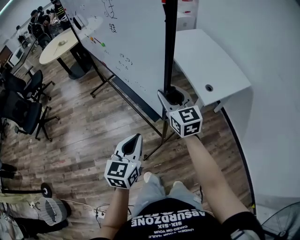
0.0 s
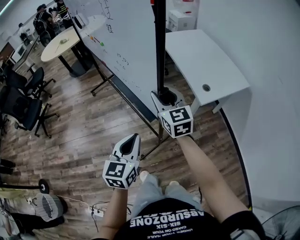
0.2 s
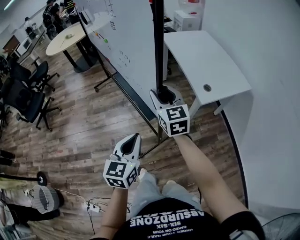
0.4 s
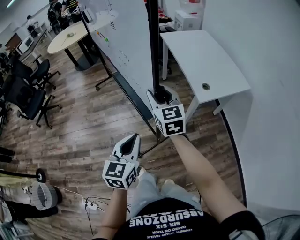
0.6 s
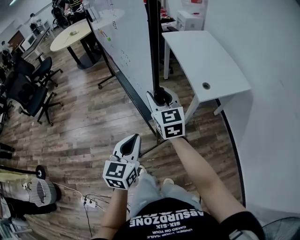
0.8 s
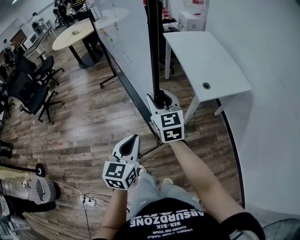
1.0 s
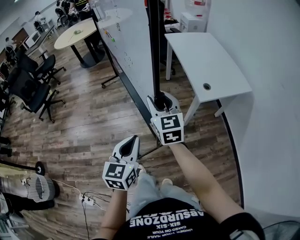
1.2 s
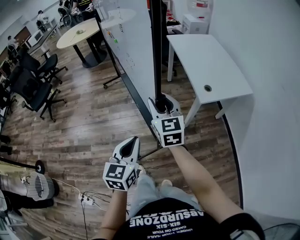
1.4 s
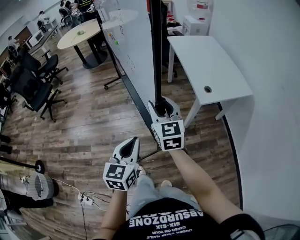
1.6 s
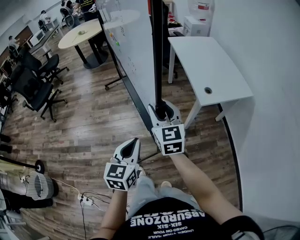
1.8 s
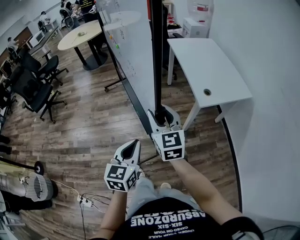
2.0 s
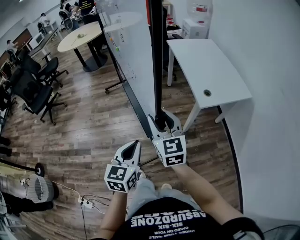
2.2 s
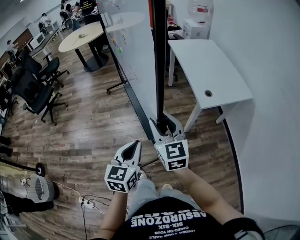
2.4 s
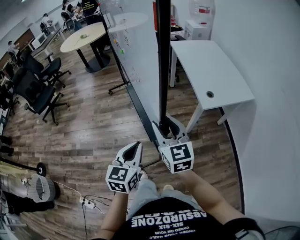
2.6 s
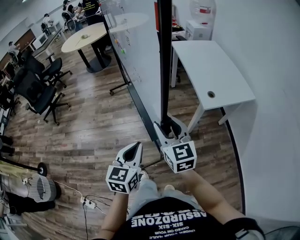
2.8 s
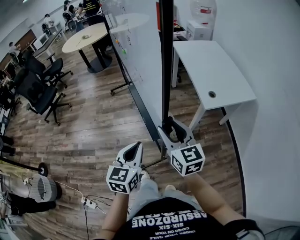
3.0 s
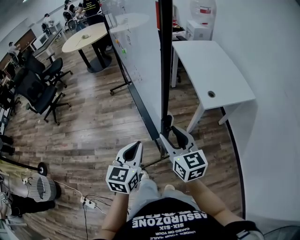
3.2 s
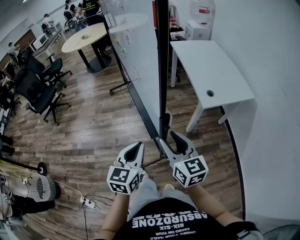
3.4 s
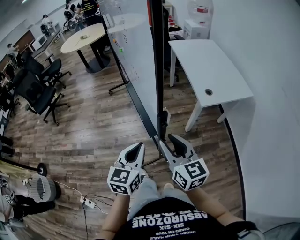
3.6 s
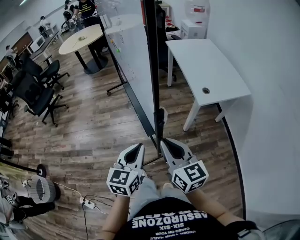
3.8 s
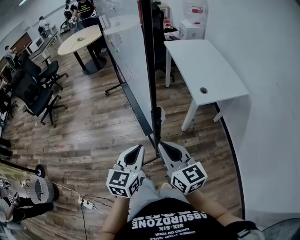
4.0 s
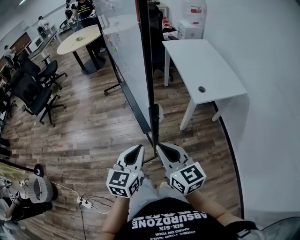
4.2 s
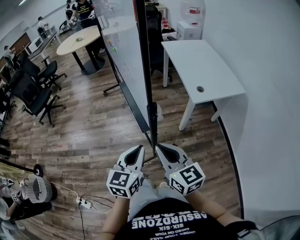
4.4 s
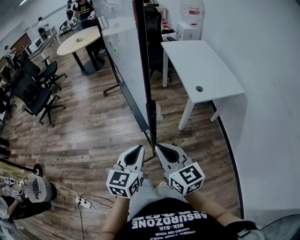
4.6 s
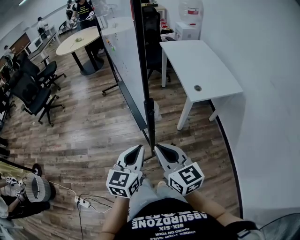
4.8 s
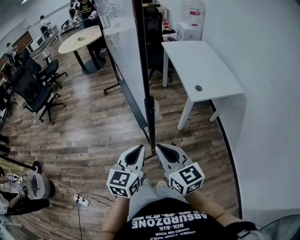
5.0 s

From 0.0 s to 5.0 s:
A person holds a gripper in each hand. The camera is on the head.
From 0.0 s to 1.6 s: The right gripper travels backward by some 15 cm. The left gripper goes roughly 15 cm backward and to the right.
From 1.6 s to 3.4 s: The right gripper is displaced backward by about 10 cm.
From 3.4 s to 5.0 s: The grippers both shift backward by some 10 cm. The right gripper closes its fingers.

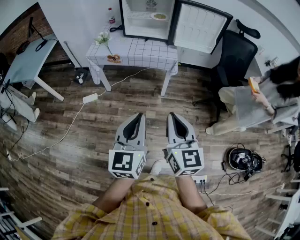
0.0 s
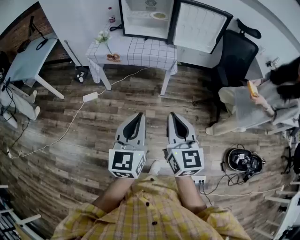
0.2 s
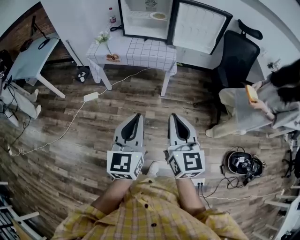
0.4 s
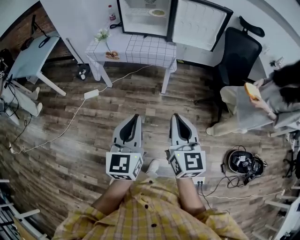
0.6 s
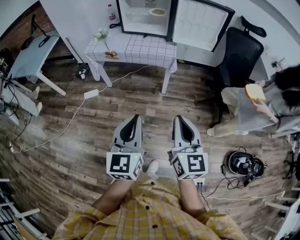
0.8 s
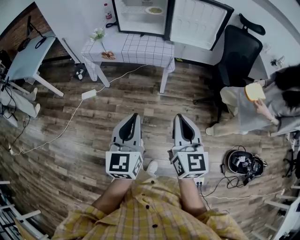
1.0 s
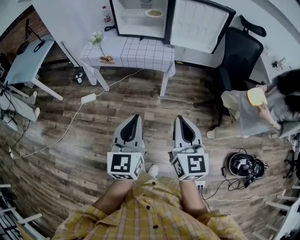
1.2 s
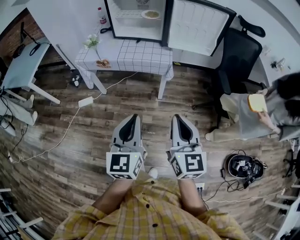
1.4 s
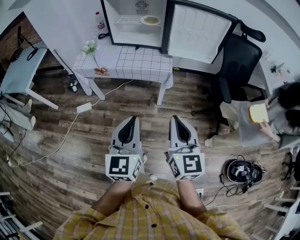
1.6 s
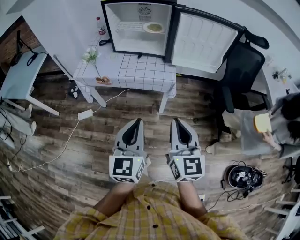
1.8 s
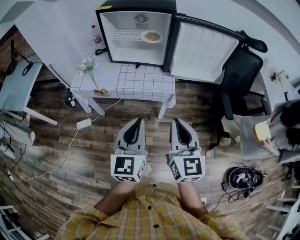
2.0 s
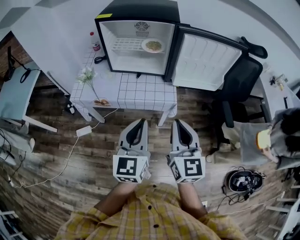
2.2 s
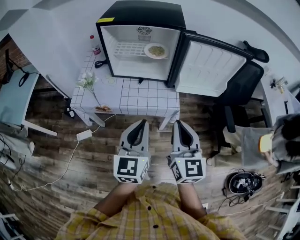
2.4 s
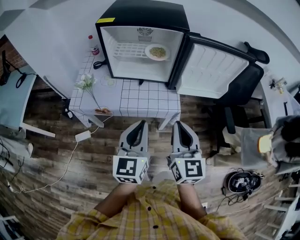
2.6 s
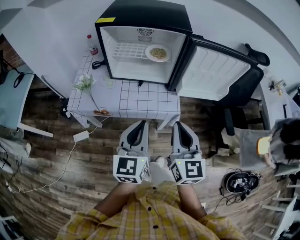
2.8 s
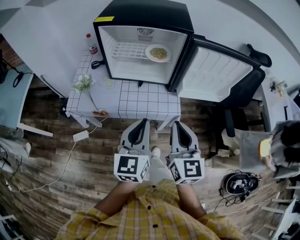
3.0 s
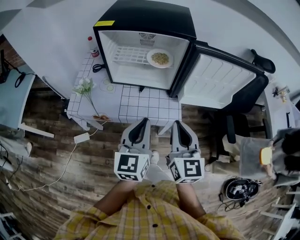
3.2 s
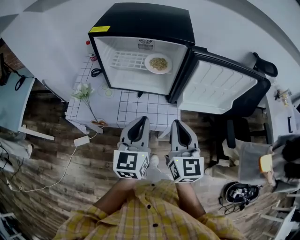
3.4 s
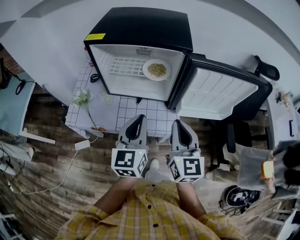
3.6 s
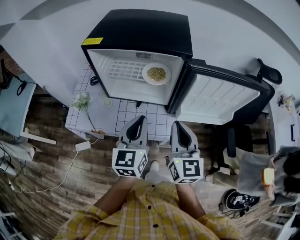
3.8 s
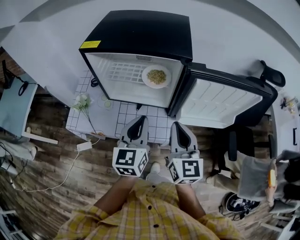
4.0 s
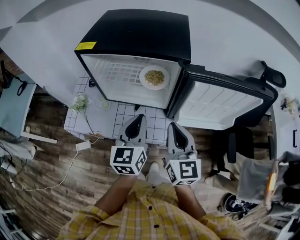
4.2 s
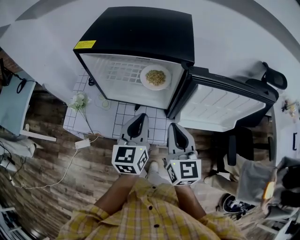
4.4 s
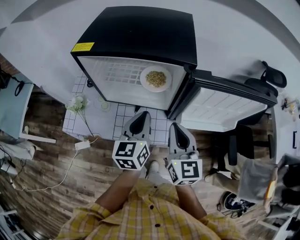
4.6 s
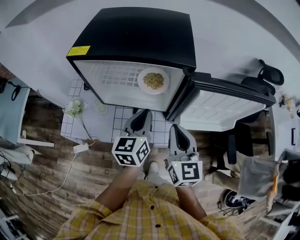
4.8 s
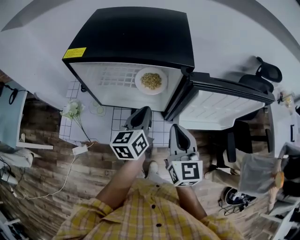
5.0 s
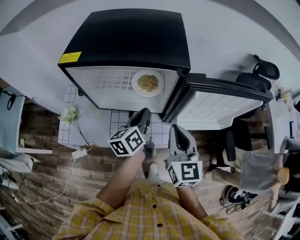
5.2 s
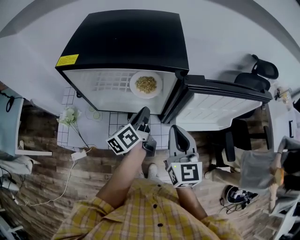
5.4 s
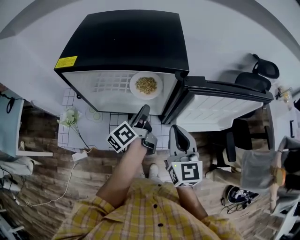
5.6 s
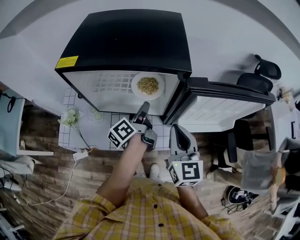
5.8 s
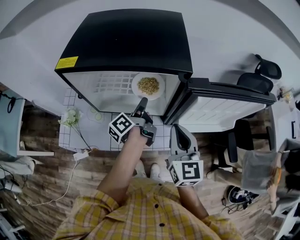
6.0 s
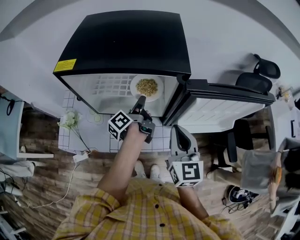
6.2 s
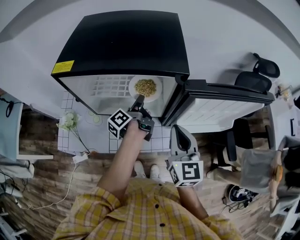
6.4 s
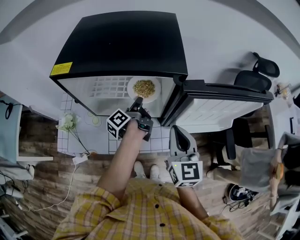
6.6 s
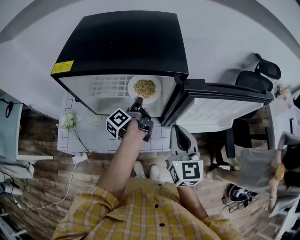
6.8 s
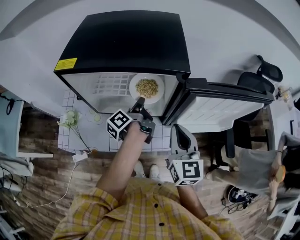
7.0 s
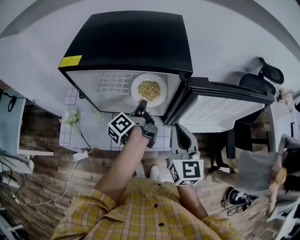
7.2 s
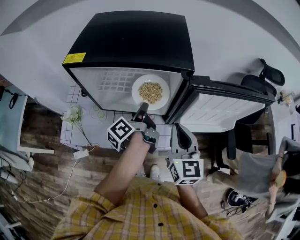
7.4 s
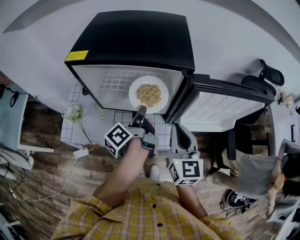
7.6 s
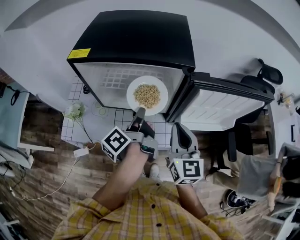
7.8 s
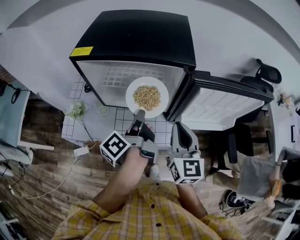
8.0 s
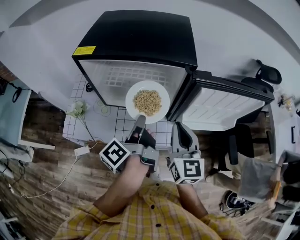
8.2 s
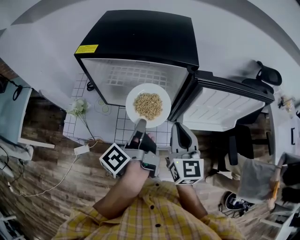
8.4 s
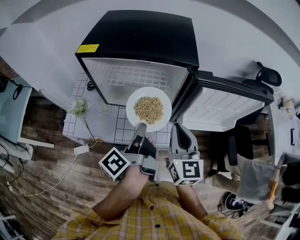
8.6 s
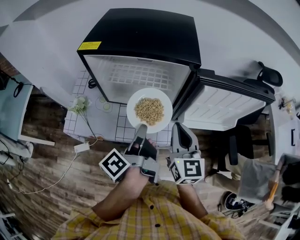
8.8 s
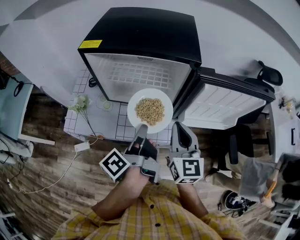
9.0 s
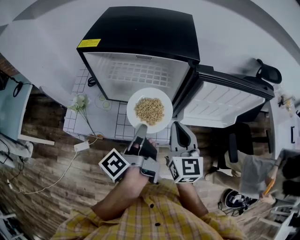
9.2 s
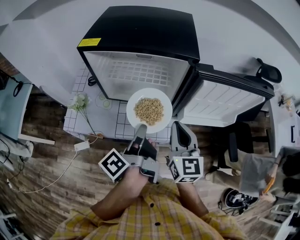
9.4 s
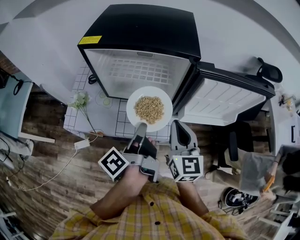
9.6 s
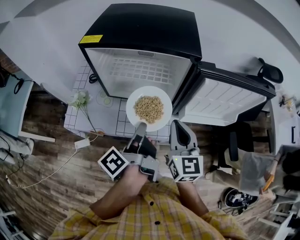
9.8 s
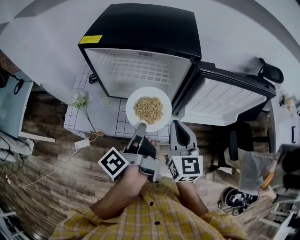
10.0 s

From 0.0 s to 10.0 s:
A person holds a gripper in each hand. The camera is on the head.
From 0.0 s to 1.4 s: The two grippers go about 15 cm forward and to the right.
From 1.4 s to 2.8 s: Both grippers travel together forward, some 30 cm.
From 2.8 s to 4.2 s: Both grippers travel together forward, roughly 20 cm.
From 4.2 s to 5.8 s: The right gripper shifts roughly 5 cm forward. The left gripper travels forward and downward by roughly 15 cm, twists about 60 degrees counterclockwise, seen from behind, and opens its fingers.
From 5.8 s to 7.2 s: The left gripper closes.
From 7.2 s to 8.6 s: The left gripper is displaced backward and upward by about 20 cm.
From 8.6 s to 10.0 s: There are only small adjustments of the grippers.

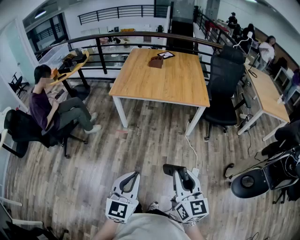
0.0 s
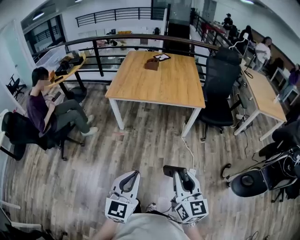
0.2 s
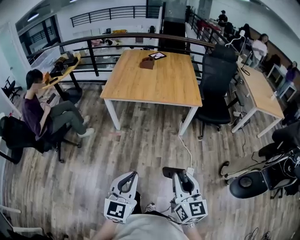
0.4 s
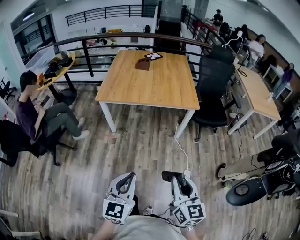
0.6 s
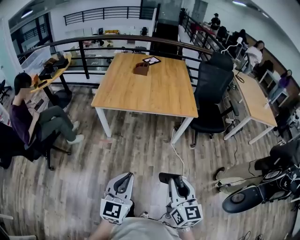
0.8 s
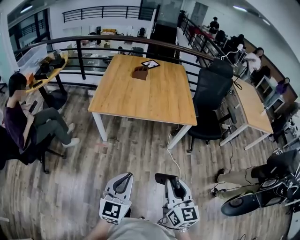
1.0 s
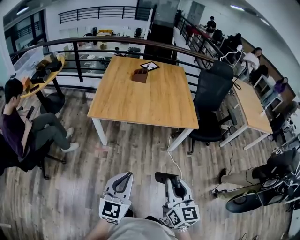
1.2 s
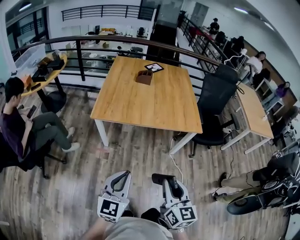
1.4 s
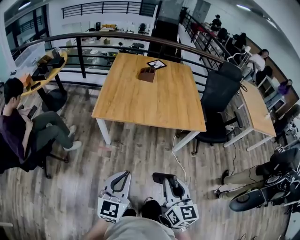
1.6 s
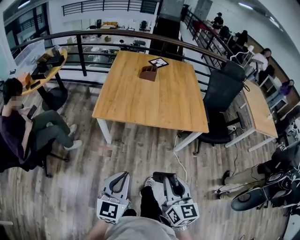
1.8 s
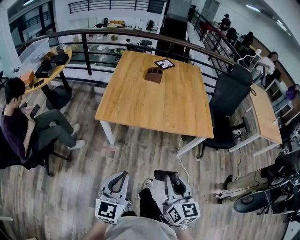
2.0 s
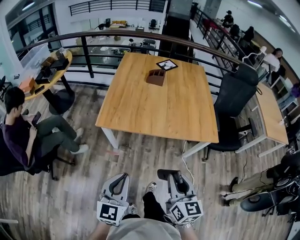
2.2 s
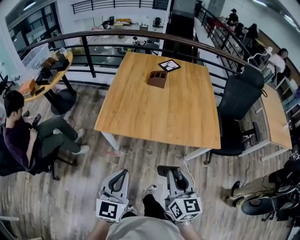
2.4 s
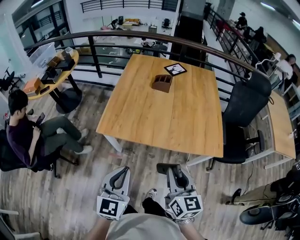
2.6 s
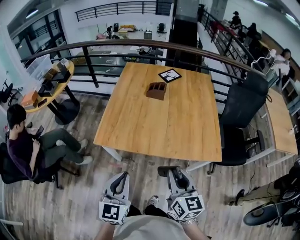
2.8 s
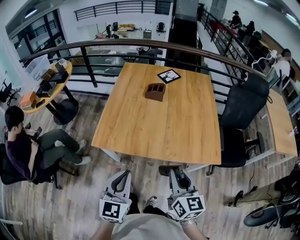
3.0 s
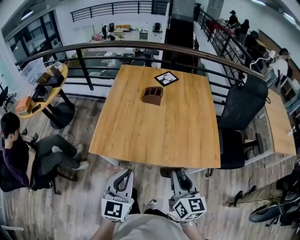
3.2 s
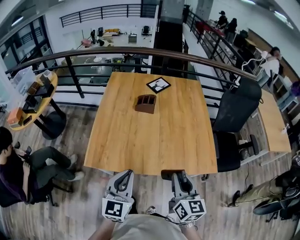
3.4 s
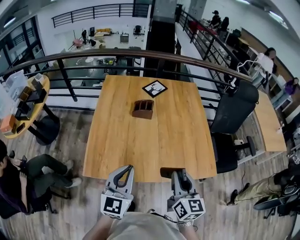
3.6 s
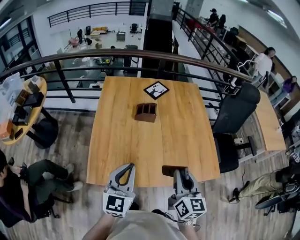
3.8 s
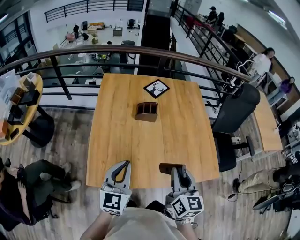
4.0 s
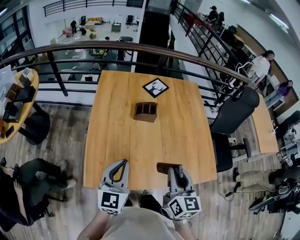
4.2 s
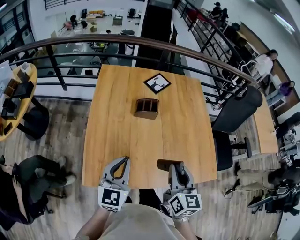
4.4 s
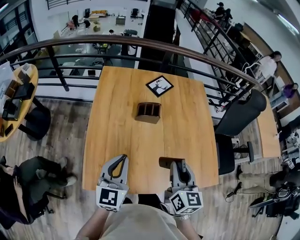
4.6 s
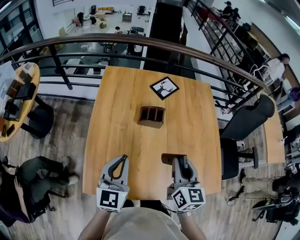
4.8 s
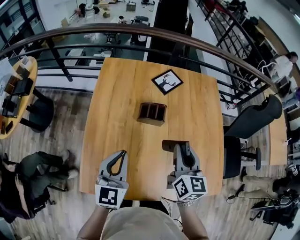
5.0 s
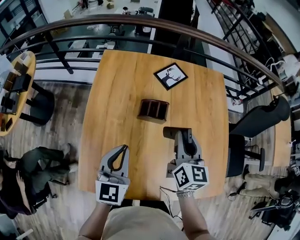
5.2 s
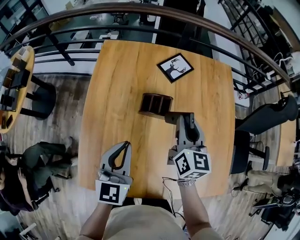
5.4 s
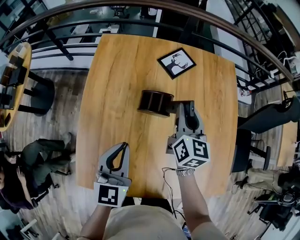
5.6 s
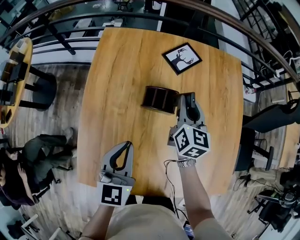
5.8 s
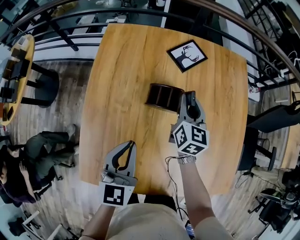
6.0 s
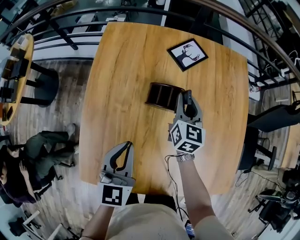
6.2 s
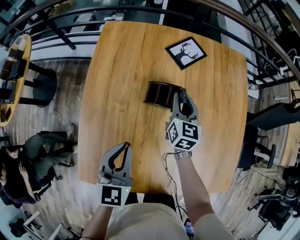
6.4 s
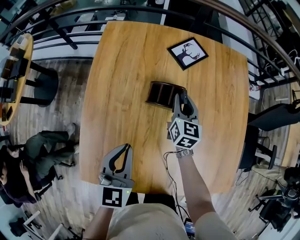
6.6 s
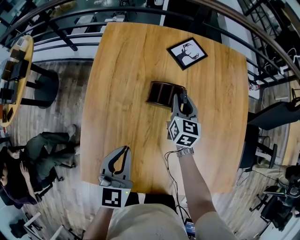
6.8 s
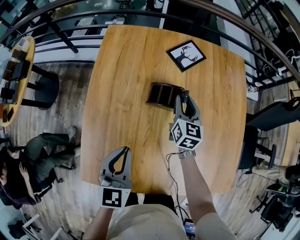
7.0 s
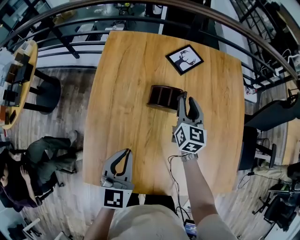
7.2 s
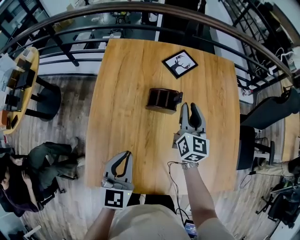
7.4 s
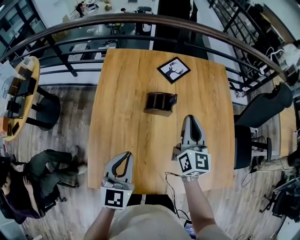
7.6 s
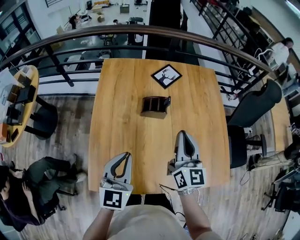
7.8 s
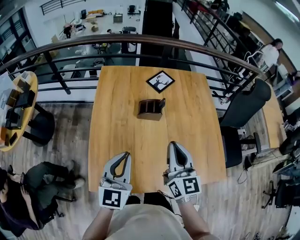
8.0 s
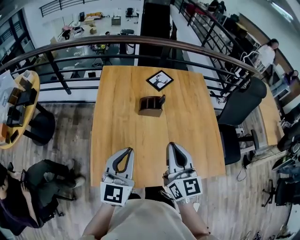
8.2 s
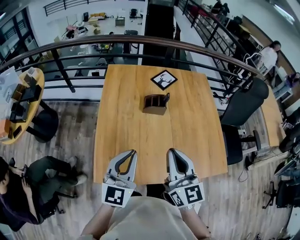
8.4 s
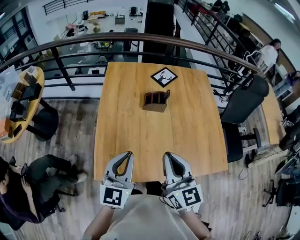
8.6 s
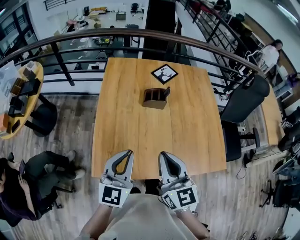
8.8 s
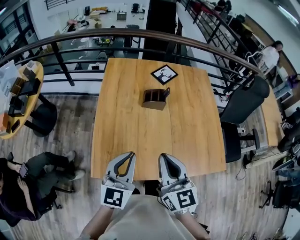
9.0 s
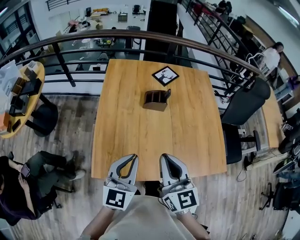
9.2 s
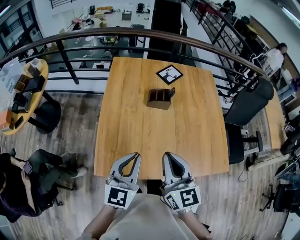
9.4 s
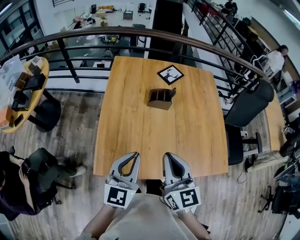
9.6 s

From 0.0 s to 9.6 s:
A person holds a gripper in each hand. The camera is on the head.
From 0.0 s to 1.6 s: Both grippers travel together forward and to the left, about 35 cm.
From 1.6 s to 3.2 s: The grippers both shift forward by some 40 cm.
From 3.2 s to 4.8 s: Both grippers are carried forward and to the left, roughly 40 cm.
From 4.8 s to 6.4 s: The right gripper heads forward and downward, covering about 40 cm; the left gripper shifts some 20 cm downward and forward.
From 6.4 s to 8.0 s: The right gripper heads backward and upward, covering some 40 cm, and rotates some 20 degrees. The left gripper goes approximately 25 cm backward and upward, and swivels some 20 degrees.
From 8.0 s to 9.6 s: The left gripper is displaced backward by roughly 10 cm. Meanwhile the right gripper goes about 15 cm backward and to the left.
